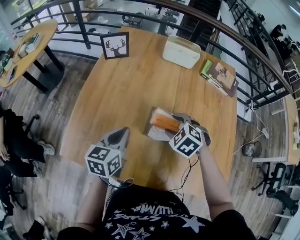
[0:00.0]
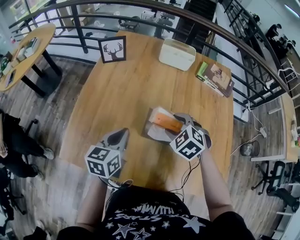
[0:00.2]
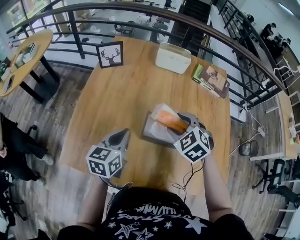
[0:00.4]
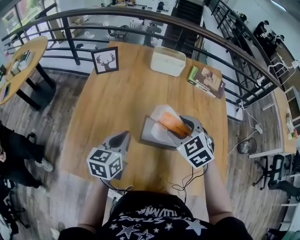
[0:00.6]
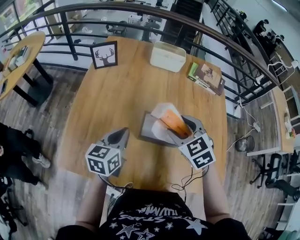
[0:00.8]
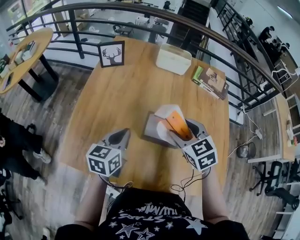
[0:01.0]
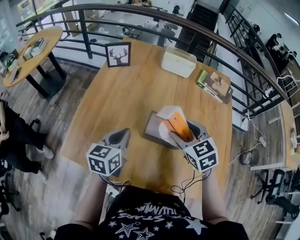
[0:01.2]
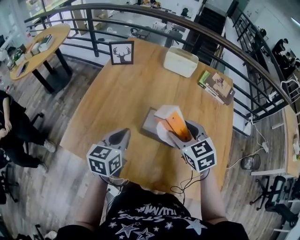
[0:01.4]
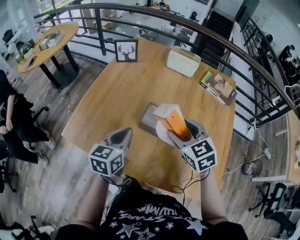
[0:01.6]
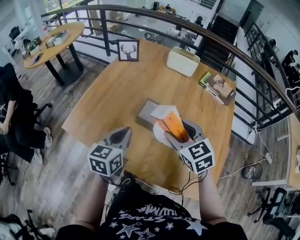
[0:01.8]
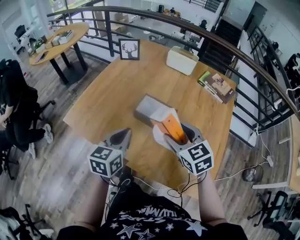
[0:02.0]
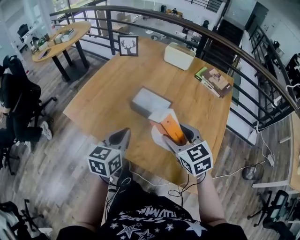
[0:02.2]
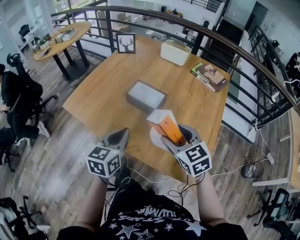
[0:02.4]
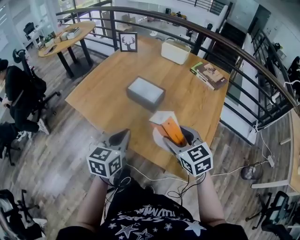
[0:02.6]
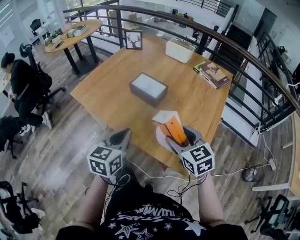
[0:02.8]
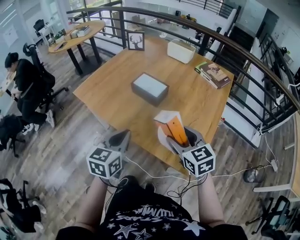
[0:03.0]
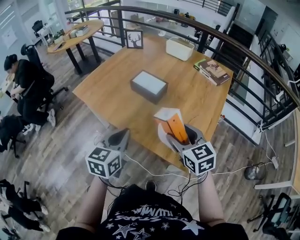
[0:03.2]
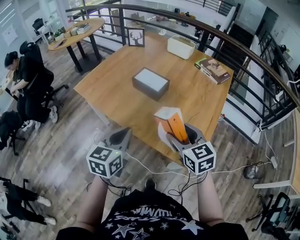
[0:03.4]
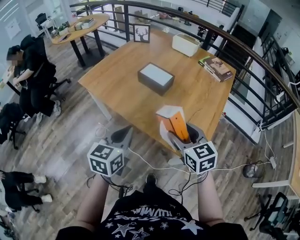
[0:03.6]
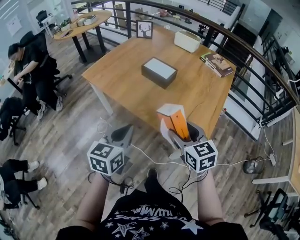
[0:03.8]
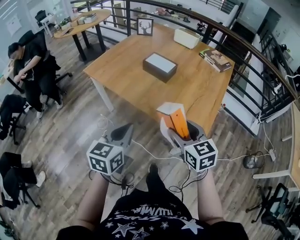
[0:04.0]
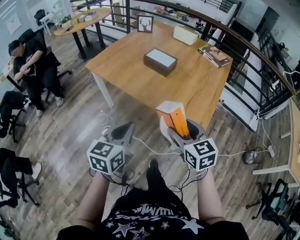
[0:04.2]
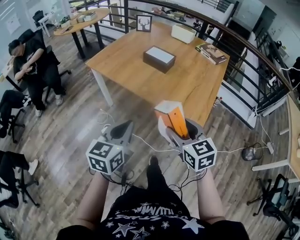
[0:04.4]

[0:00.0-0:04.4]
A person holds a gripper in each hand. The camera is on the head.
0:00.0 to 0:01.4: The left gripper ends up about 5 cm from where it was; the right gripper shifts approximately 10 cm upward, and changes its angle by roughly 30 degrees.
0:01.4 to 0:03.0: The right gripper is displaced backward and to the right by roughly 35 cm. The left gripper goes approximately 35 cm backward.
0:03.0 to 0:04.4: The left gripper shifts approximately 25 cm backward, while the right gripper travels backward and to the left by some 25 cm.

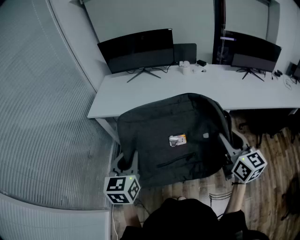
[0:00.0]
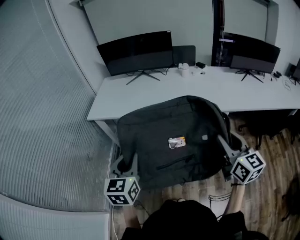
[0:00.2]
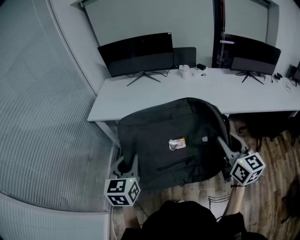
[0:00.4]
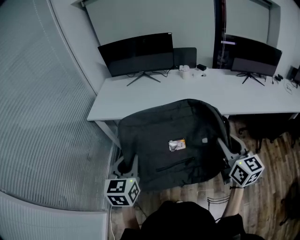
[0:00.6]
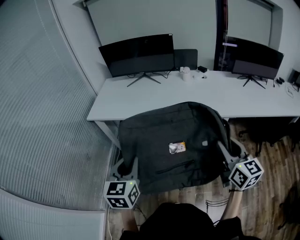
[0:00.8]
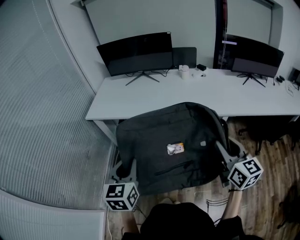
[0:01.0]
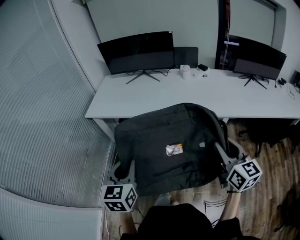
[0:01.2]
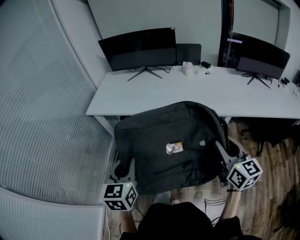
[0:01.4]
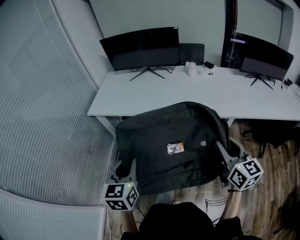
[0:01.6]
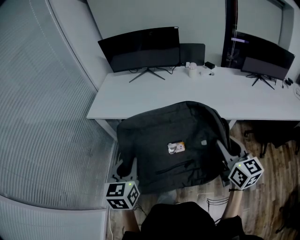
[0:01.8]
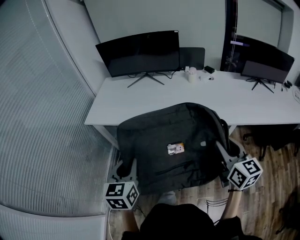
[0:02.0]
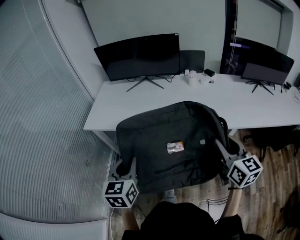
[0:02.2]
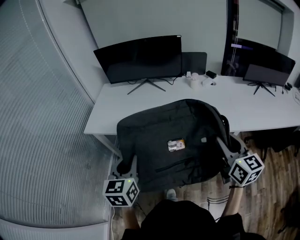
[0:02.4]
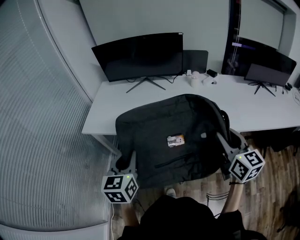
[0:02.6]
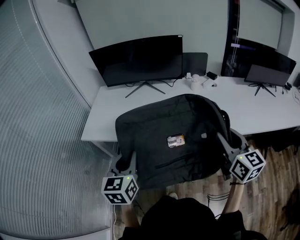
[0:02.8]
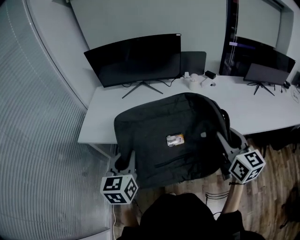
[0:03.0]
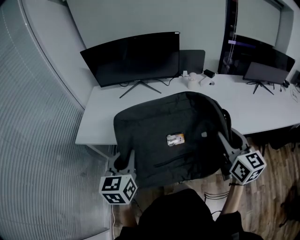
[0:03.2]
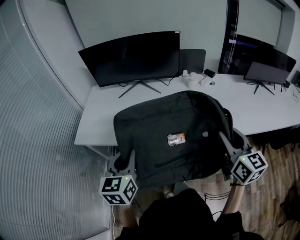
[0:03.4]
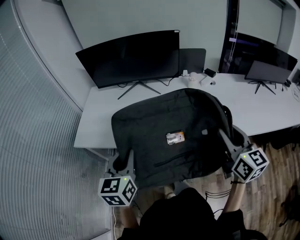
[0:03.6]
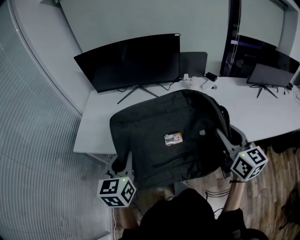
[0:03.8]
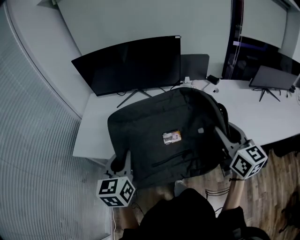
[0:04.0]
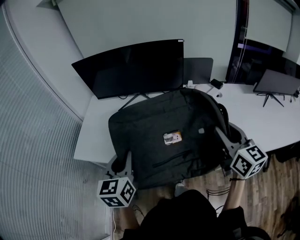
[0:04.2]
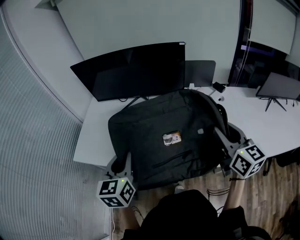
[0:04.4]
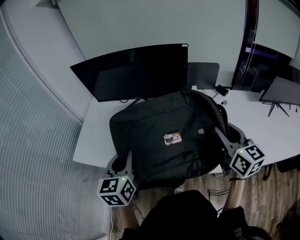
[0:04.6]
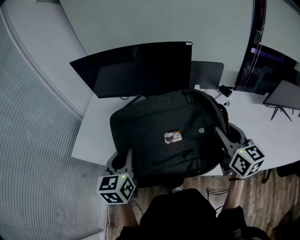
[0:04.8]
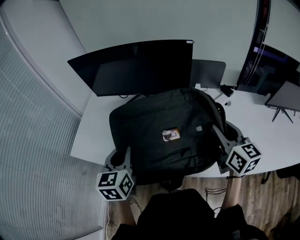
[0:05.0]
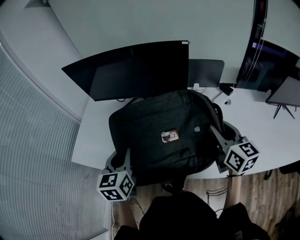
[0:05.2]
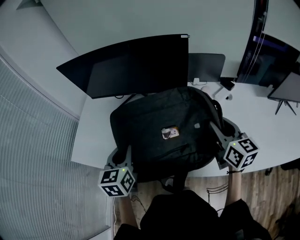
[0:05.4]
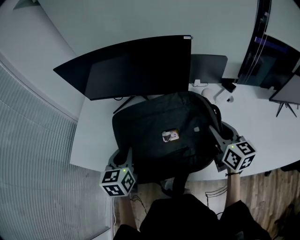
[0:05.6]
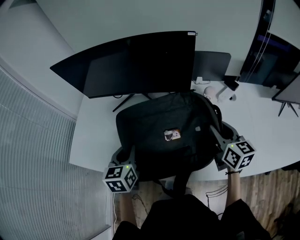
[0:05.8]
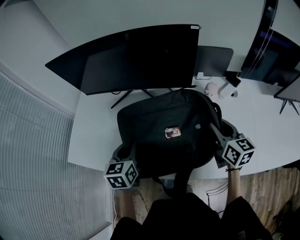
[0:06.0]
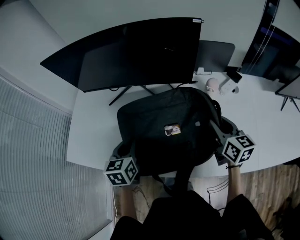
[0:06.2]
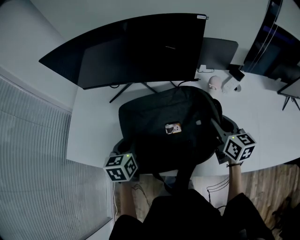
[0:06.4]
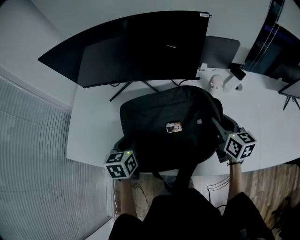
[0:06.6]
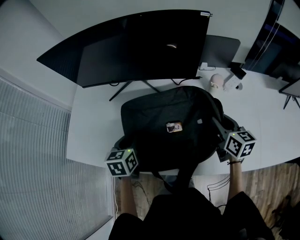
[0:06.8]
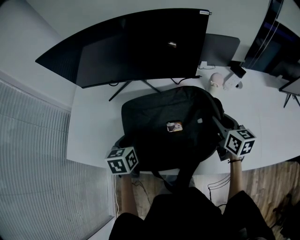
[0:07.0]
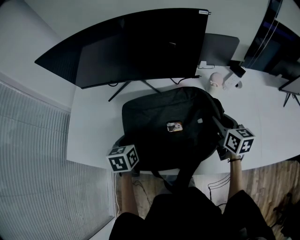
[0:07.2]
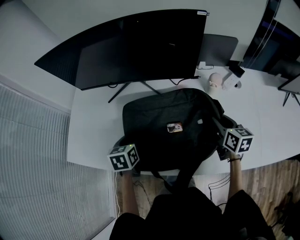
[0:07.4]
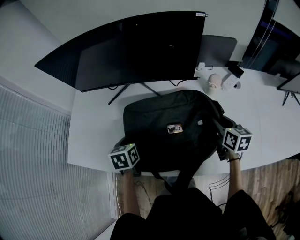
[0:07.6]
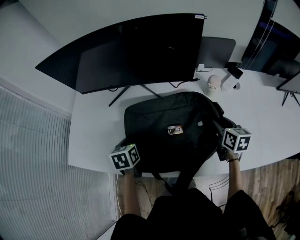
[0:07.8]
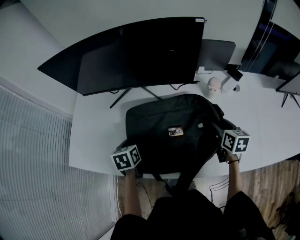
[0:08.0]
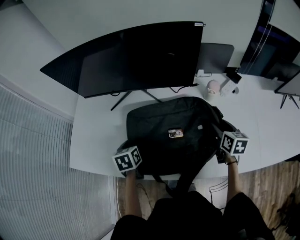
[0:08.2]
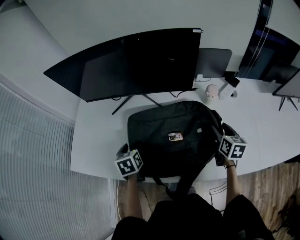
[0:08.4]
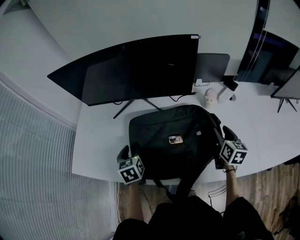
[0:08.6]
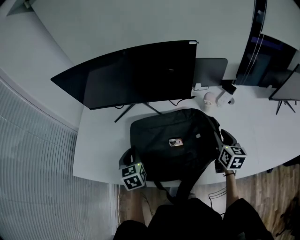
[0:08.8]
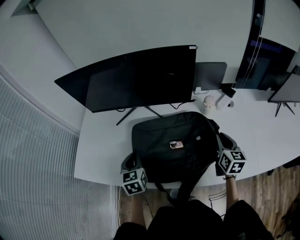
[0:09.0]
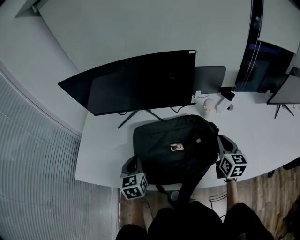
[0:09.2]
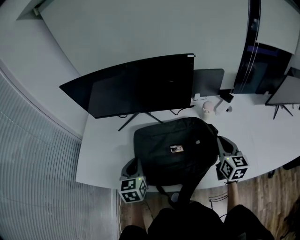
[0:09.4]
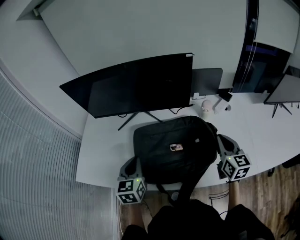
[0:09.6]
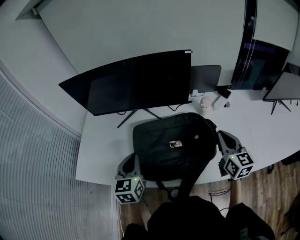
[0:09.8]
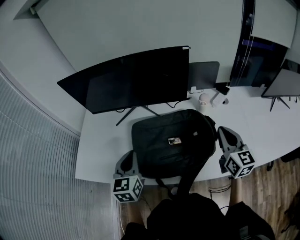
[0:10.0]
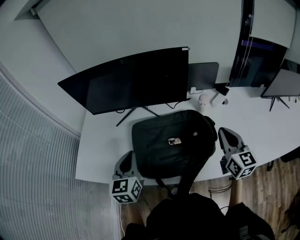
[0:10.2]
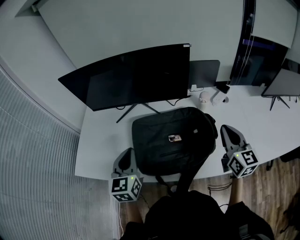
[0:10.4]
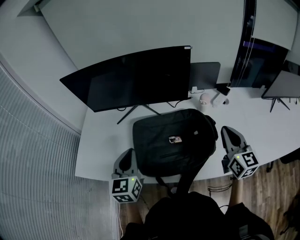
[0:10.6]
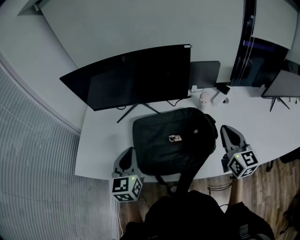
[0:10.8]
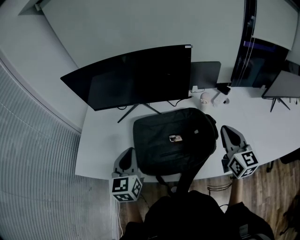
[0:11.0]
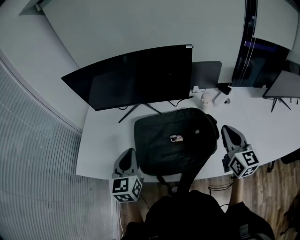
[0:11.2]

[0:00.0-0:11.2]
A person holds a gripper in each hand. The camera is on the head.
0:00.0 to 0:01.6: The right gripper travels forward by approximately 5 cm.
0:01.6 to 0:03.2: The grippers both shift forward by some 25 cm.
0:03.2 to 0:04.8: The two grippers go approximately 20 cm forward.
0:04.8 to 0:06.4: The grippers both shift downward and forward by approximately 20 cm.
0:06.4 to 0:08.0: Both grippers travel together downward, some 5 cm. The left gripper opens up.
0:08.0 to 0:09.6: Both grippers travel together upward and backward, approximately 15 cm. The right gripper swivels roughly 20 degrees, and closes its fingers. Meanwhile the left gripper swivels about 30 degrees, and closes.
0:09.6 to 0:11.2: The right gripper moves approximately 5 cm; the left gripper shifts by some 5 cm.

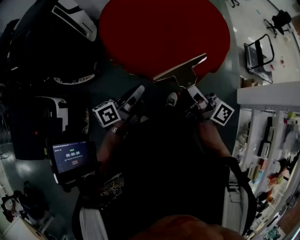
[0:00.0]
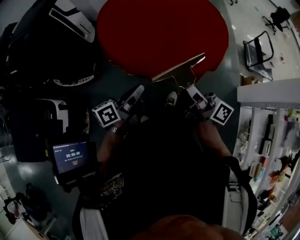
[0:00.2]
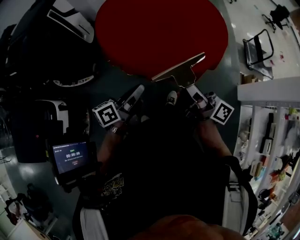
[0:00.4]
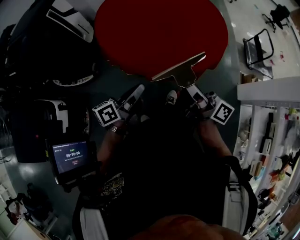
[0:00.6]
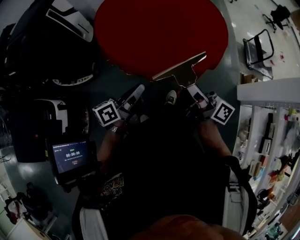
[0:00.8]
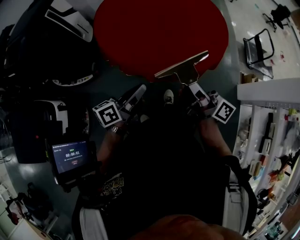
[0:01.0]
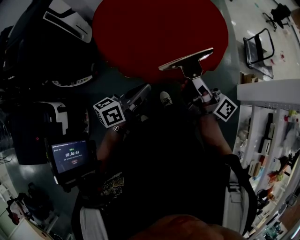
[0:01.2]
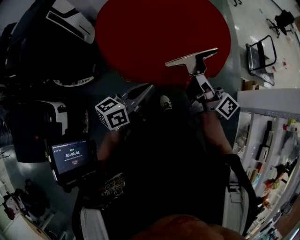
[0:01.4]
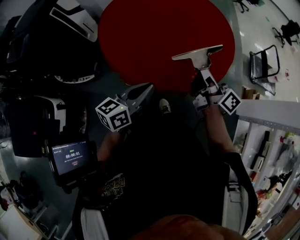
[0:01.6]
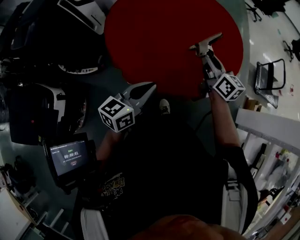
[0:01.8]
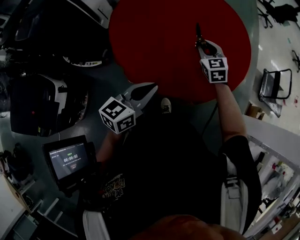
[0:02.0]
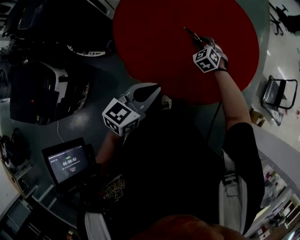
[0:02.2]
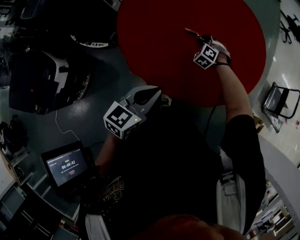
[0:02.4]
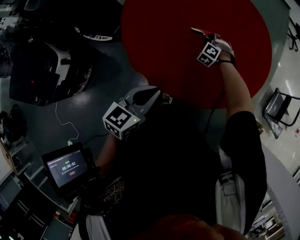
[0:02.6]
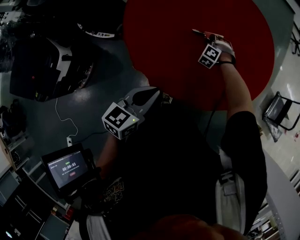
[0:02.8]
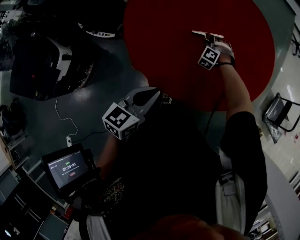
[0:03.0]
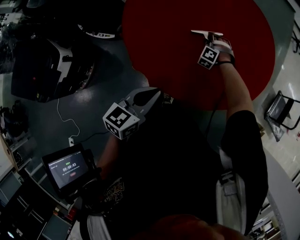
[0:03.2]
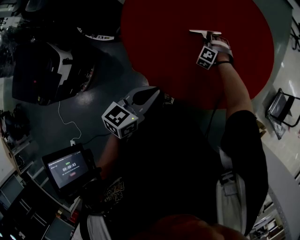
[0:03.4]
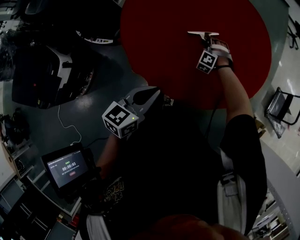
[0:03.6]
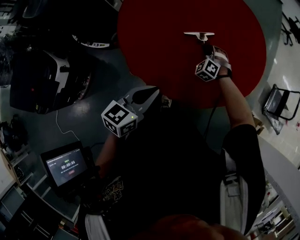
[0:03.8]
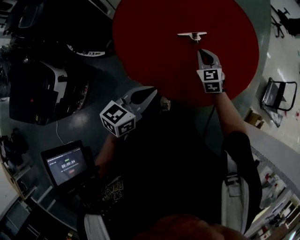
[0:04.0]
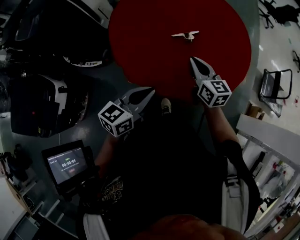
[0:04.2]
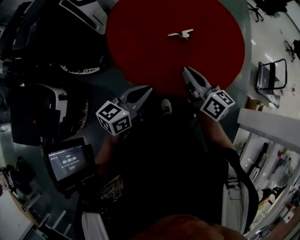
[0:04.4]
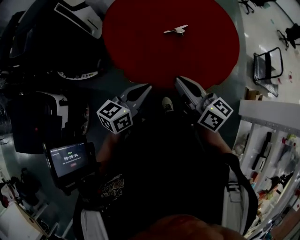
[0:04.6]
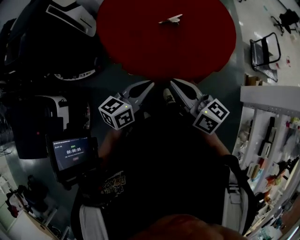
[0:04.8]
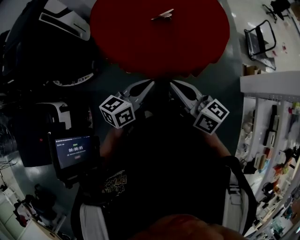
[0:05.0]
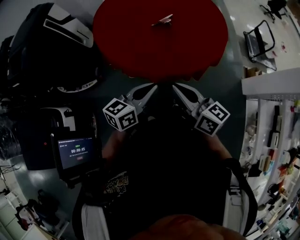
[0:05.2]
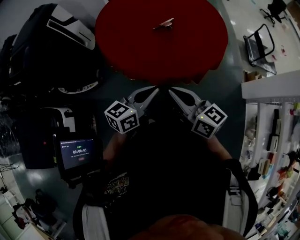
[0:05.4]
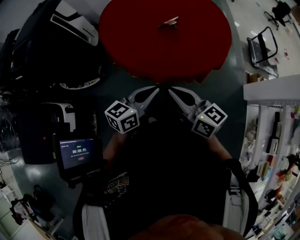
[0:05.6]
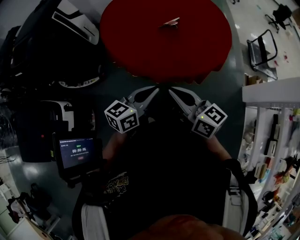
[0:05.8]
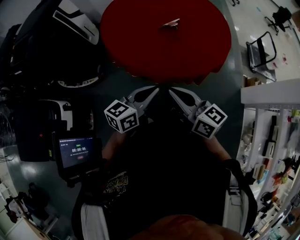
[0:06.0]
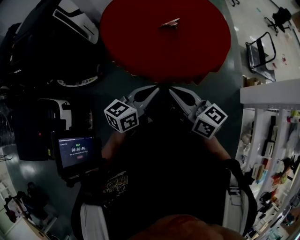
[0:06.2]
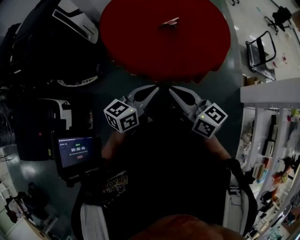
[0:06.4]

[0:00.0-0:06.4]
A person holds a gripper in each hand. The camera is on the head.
0:00.0 to 0:01.6: The right gripper moves forward and to the right, about 20 cm. Meanwhile the left gripper moves forward, to the right and upward, some 15 cm, and swivels approximately 20 degrees.
0:01.6 to 0:03.2: The left gripper shifts some 10 cm downward and forward, and swivels roughly 30 degrees. The right gripper travels downward and forward by some 50 cm, and twists roughly 130 degrees counterclockwise, seen from behind.
0:03.2 to 0:04.8: The left gripper is displaced backward and to the left by approximately 10 cm, and rotates about 30 degrees. The right gripper goes roughly 50 cm backward and upward, rolls clockwise, seen from behind, by some 110 degrees, and closes up.
0:04.8 to 0:06.4: The two grippers go roughly 5 cm backward.

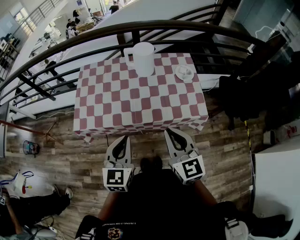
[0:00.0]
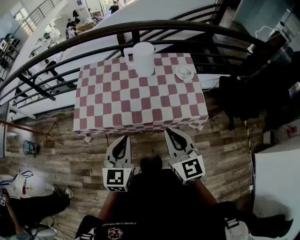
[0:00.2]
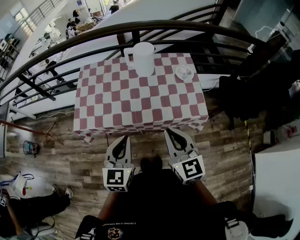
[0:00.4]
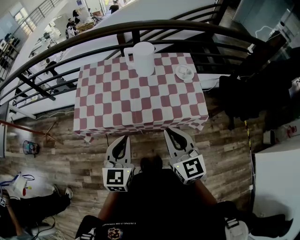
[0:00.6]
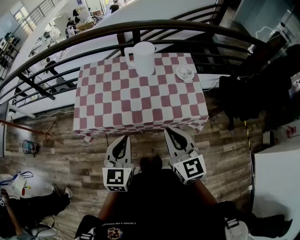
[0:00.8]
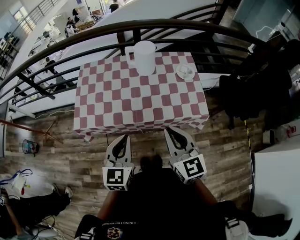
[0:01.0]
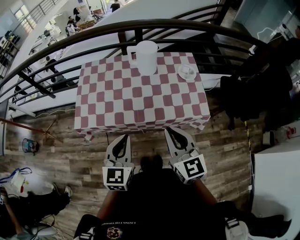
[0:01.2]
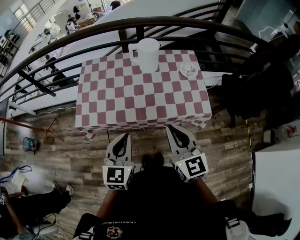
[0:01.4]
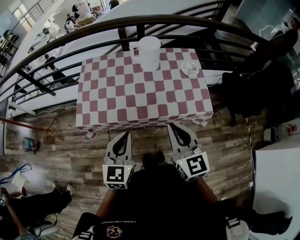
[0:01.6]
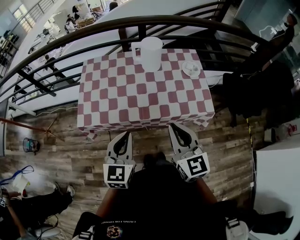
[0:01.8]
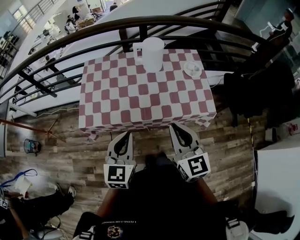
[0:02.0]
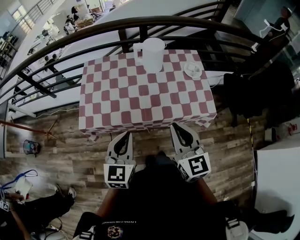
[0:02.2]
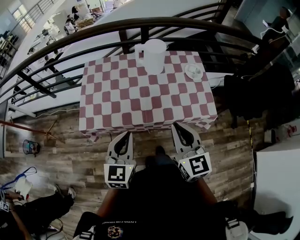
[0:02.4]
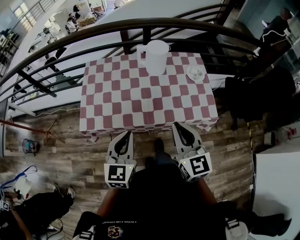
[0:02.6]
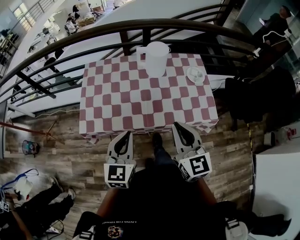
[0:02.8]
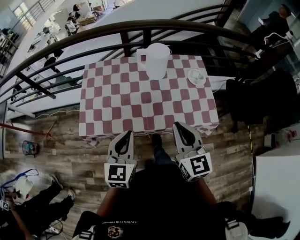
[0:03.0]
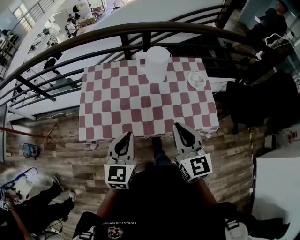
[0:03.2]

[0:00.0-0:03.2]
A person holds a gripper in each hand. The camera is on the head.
0:00.0 to 0:01.6: The grippers stay close to where they were, moving slightly.
0:01.6 to 0:03.2: The grippers both shift forward by about 10 cm.
